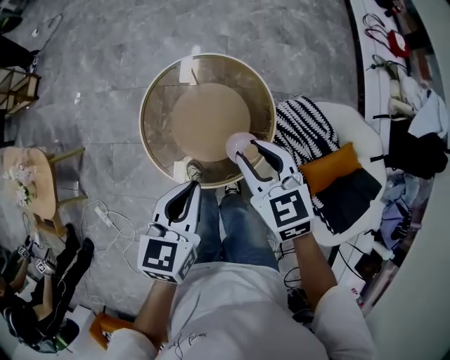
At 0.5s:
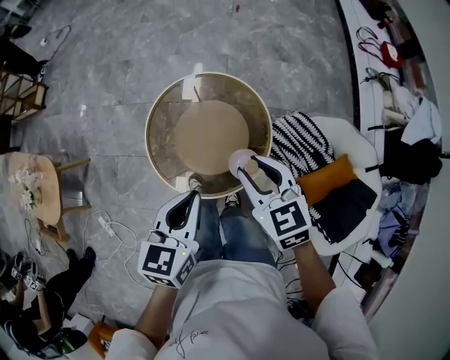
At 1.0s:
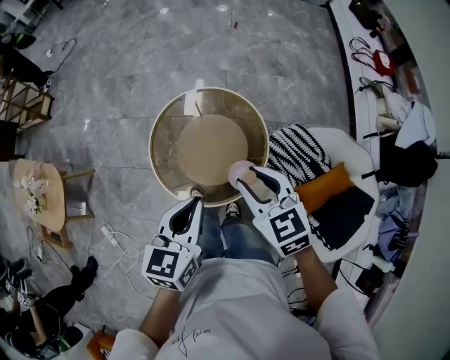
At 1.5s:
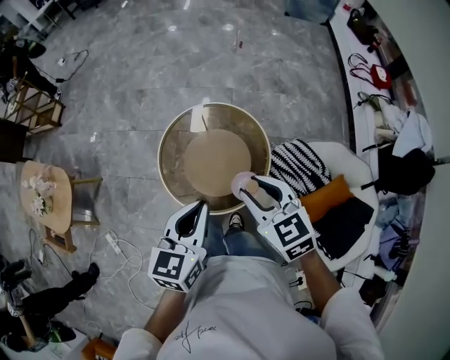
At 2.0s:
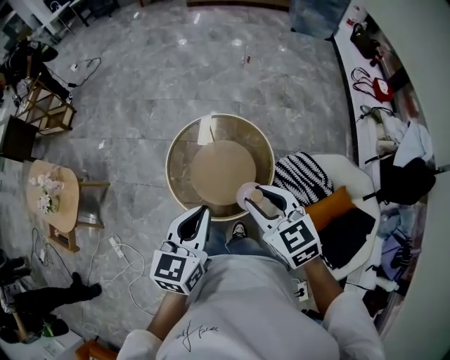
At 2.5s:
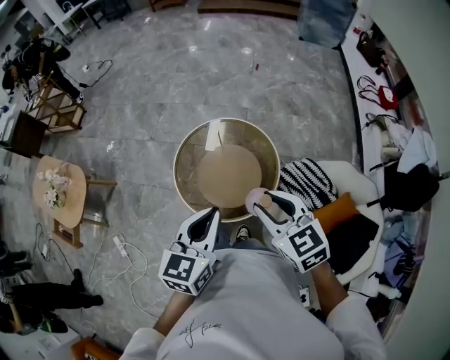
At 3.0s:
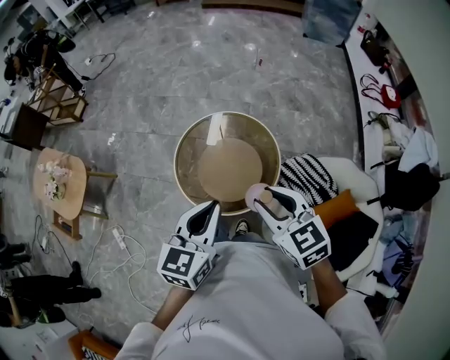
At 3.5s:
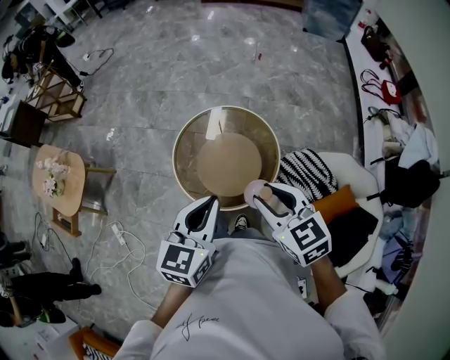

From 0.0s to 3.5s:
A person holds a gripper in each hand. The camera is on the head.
From 0.0s to 2.0s: The grippers both shift upward and backward by approximately 15 cm.
From 2.0s to 3.5s: The grippers make only small movements.

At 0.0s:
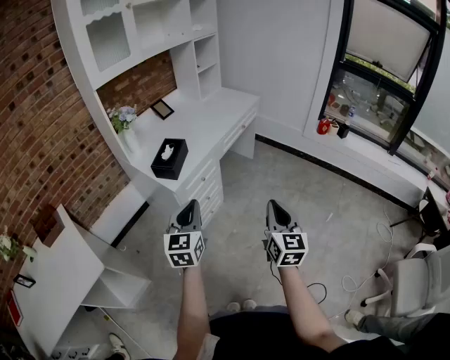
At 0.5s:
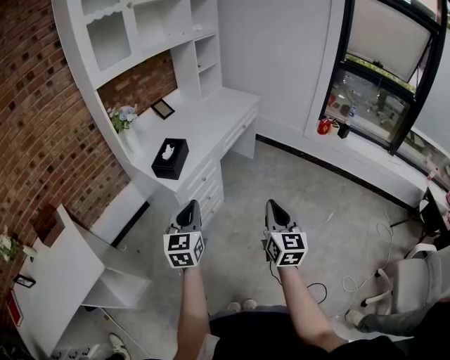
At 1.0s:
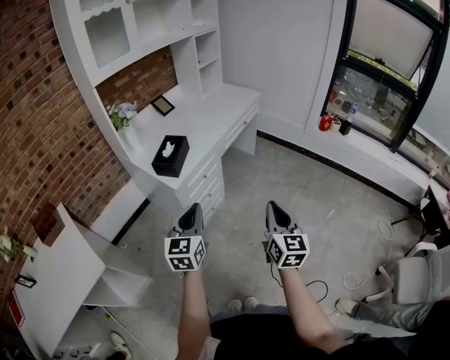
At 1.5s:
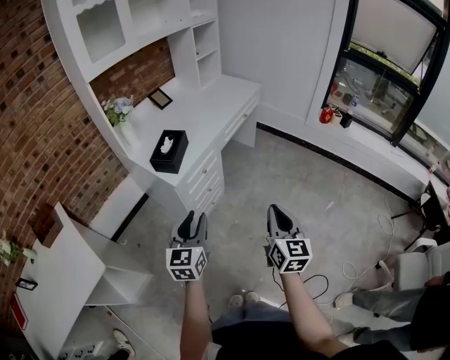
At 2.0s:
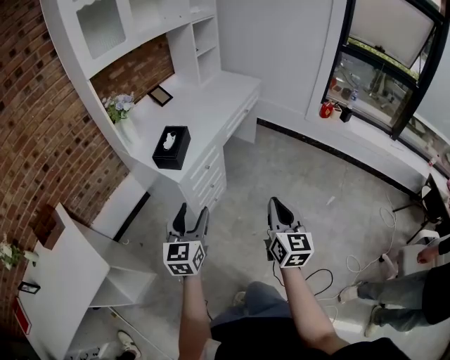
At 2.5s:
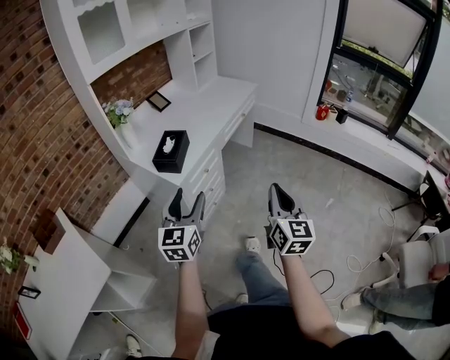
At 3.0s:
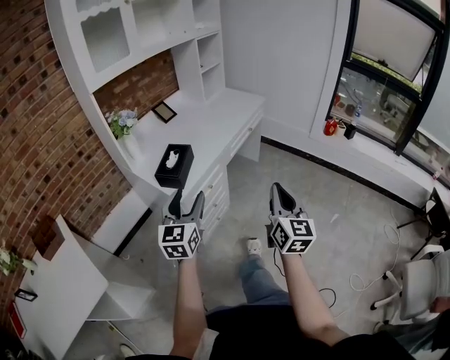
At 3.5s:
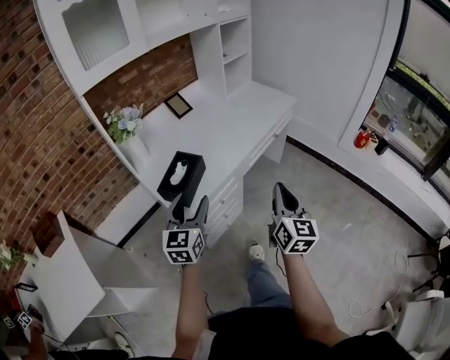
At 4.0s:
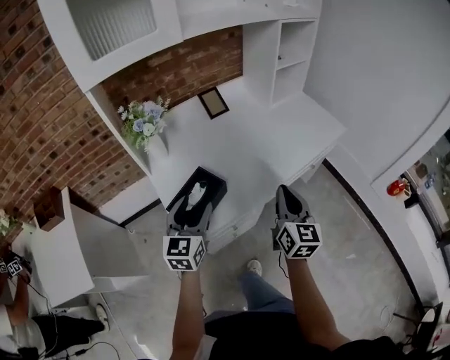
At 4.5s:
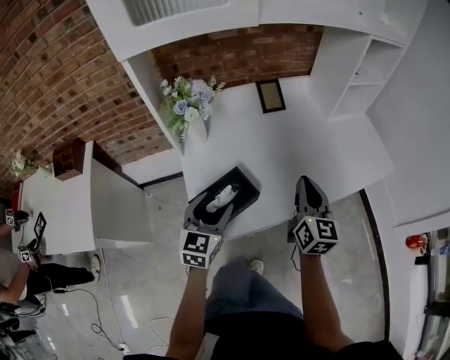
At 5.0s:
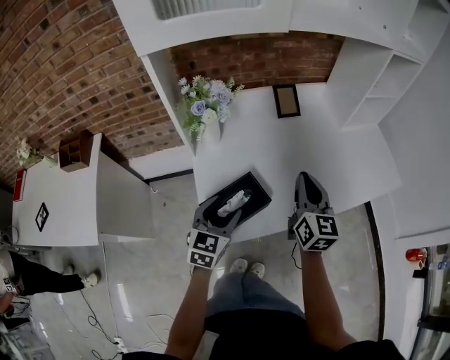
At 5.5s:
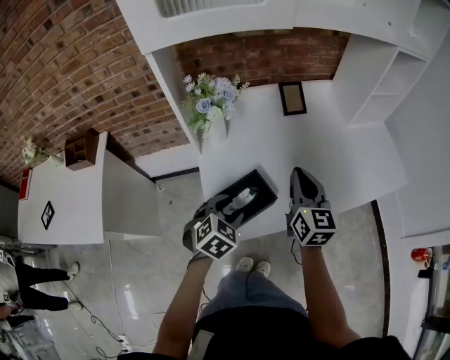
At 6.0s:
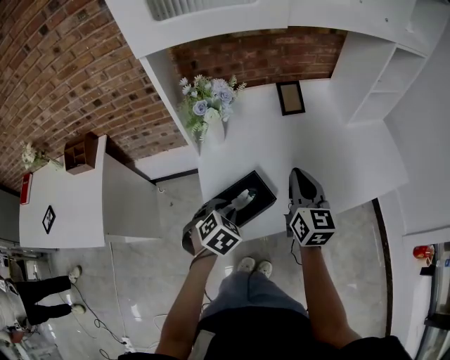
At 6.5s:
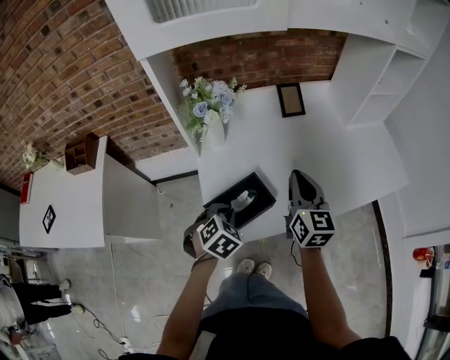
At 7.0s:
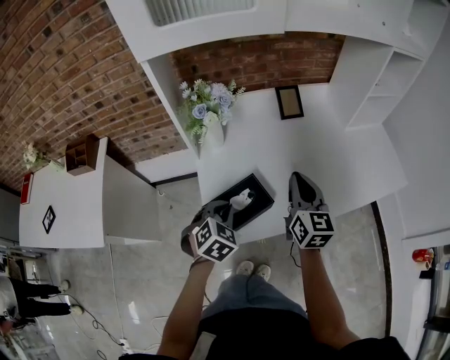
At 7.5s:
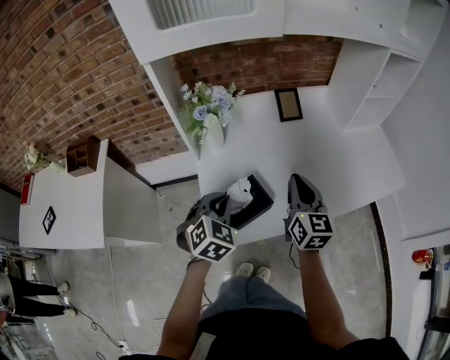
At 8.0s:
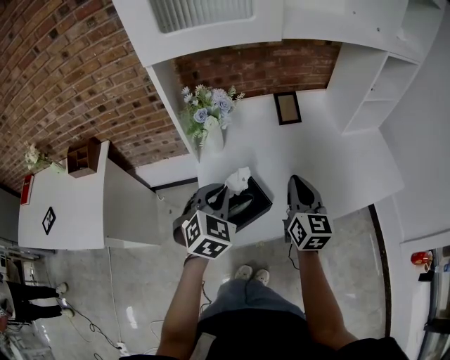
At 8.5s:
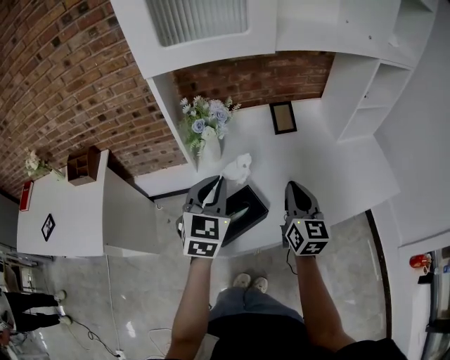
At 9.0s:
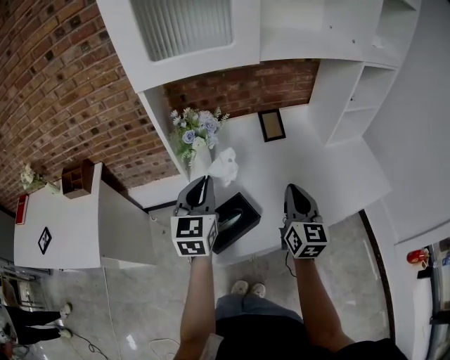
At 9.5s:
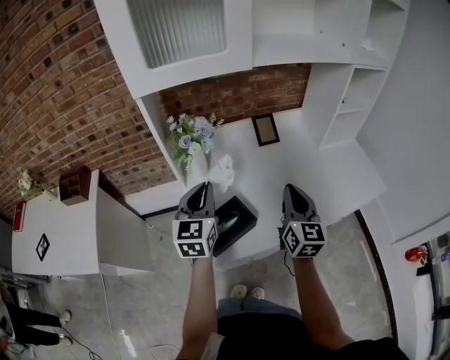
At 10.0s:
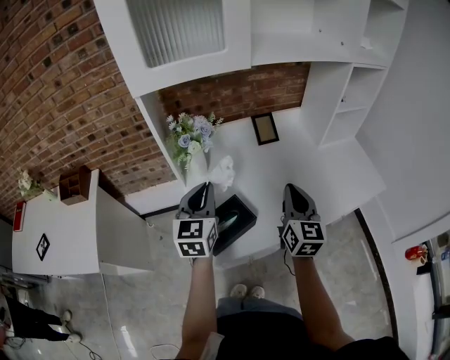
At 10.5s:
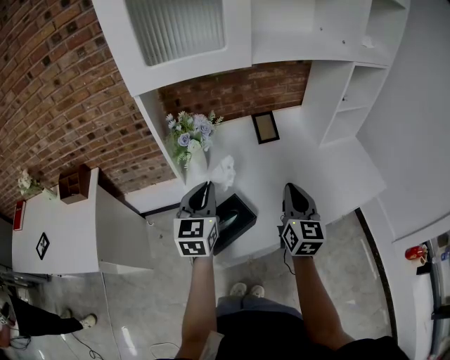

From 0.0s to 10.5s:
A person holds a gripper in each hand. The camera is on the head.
From 0.0s to 2.0s: The left gripper moves some 5 cm, and opens.
From 2.0s to 4.0s: The right gripper shifts by about 50 cm, and changes its angle by roughly 20 degrees; the left gripper changes place by roughly 40 cm, and rotates about 20 degrees.
From 4.0s to 6.5s: The left gripper goes roughly 10 cm downward, angles its fingers downward, by about 50 degrees, and closes its fingers. Meanwhile the right gripper moves forward and to the left, approximately 20 cm, and rotates roughly 20 degrees.
From 6.5s to 8.5s: The left gripper moves upward, some 20 cm, and angles its fingers upward, by approximately 40 degrees.
From 8.5s to 10.5s: The grippers stay close to where they were, moving slightly.

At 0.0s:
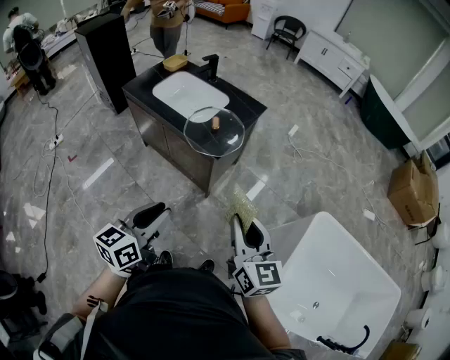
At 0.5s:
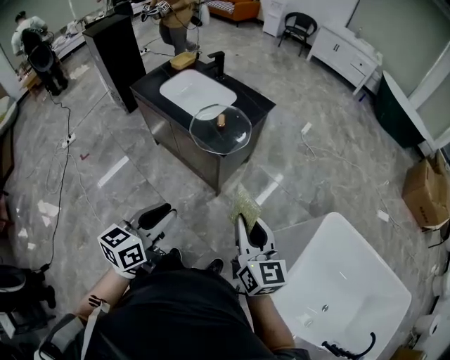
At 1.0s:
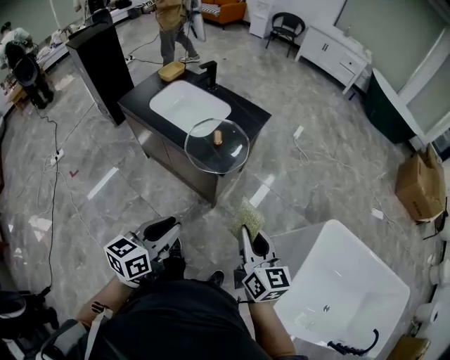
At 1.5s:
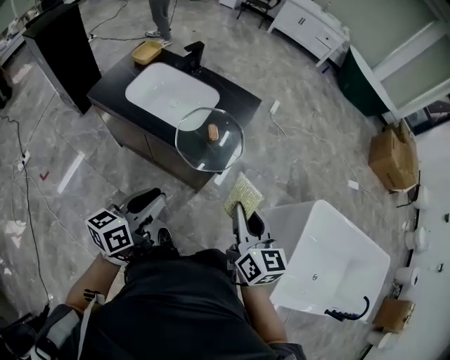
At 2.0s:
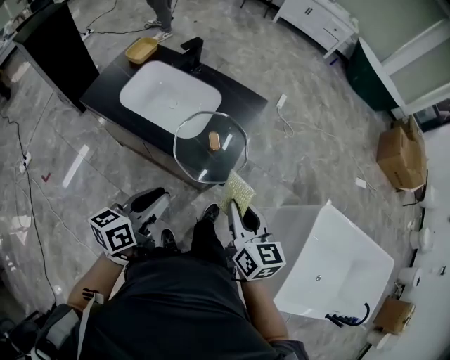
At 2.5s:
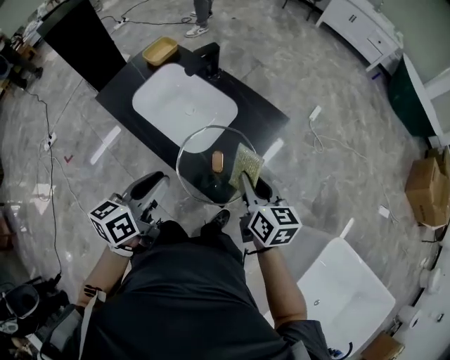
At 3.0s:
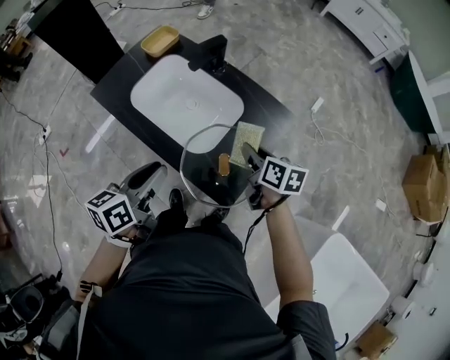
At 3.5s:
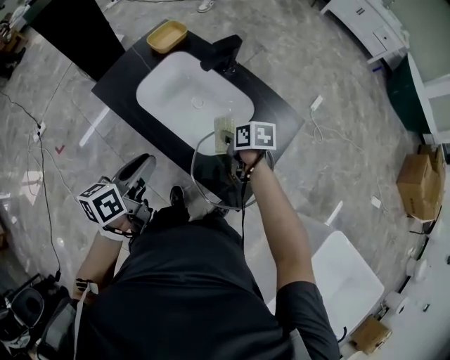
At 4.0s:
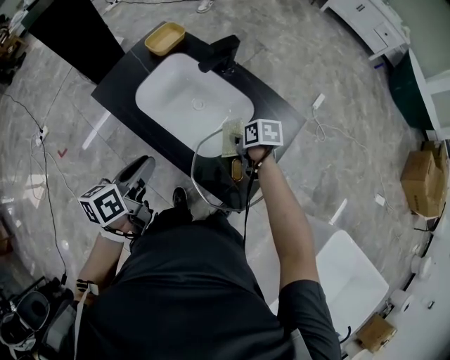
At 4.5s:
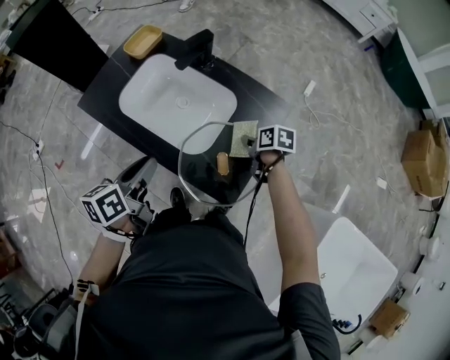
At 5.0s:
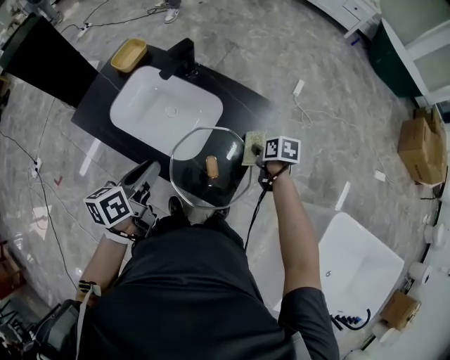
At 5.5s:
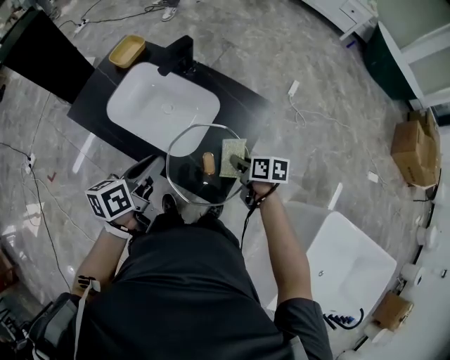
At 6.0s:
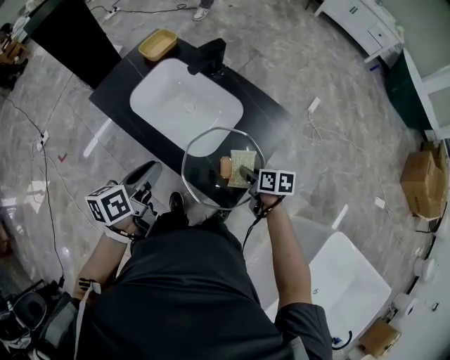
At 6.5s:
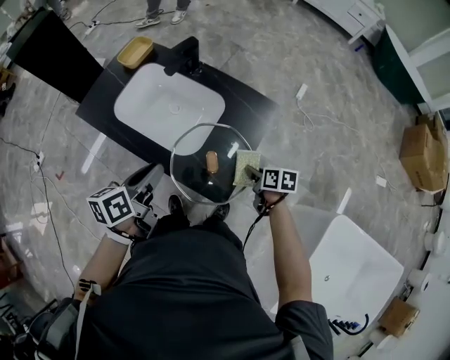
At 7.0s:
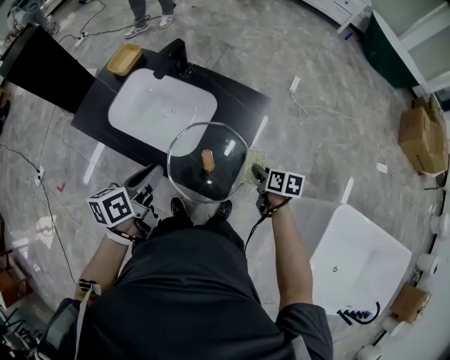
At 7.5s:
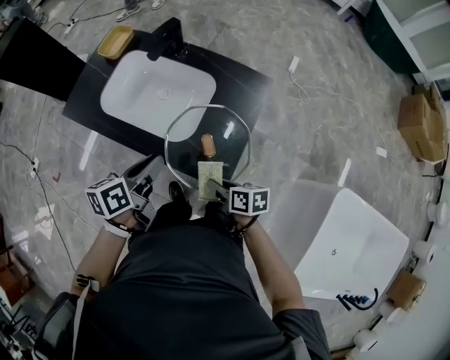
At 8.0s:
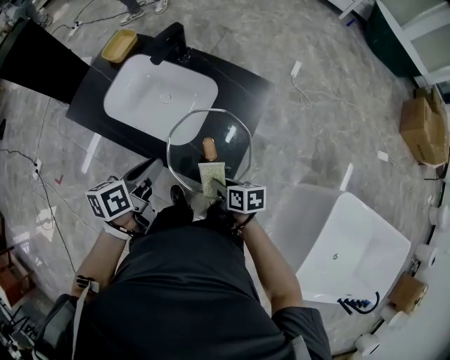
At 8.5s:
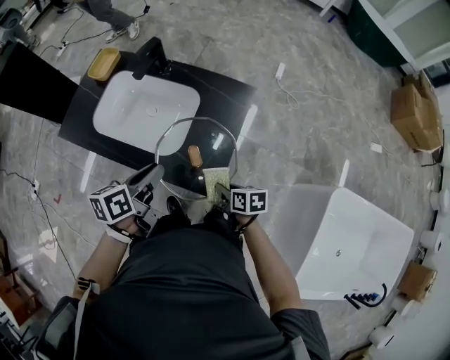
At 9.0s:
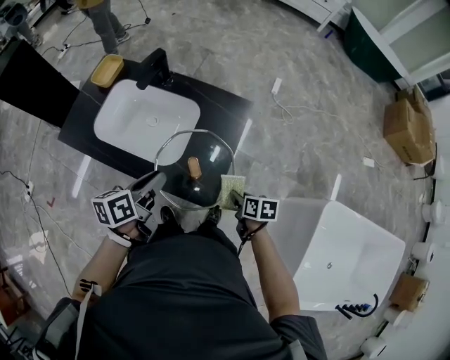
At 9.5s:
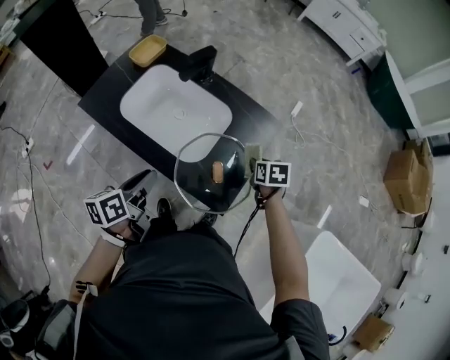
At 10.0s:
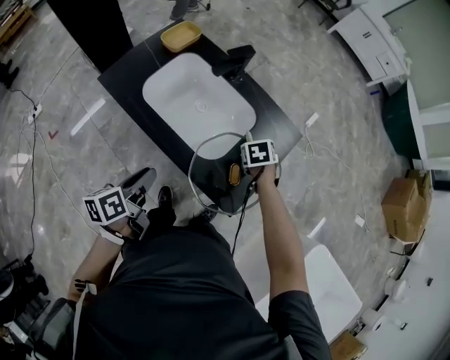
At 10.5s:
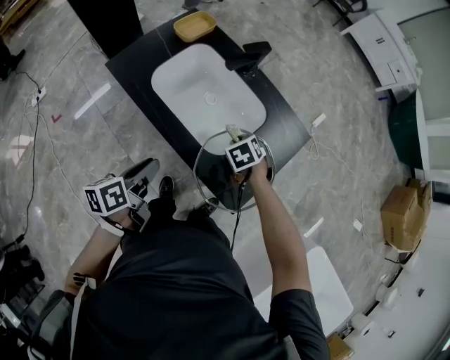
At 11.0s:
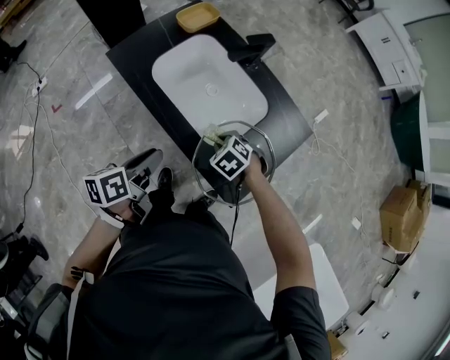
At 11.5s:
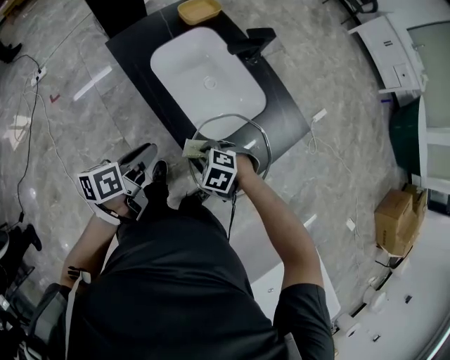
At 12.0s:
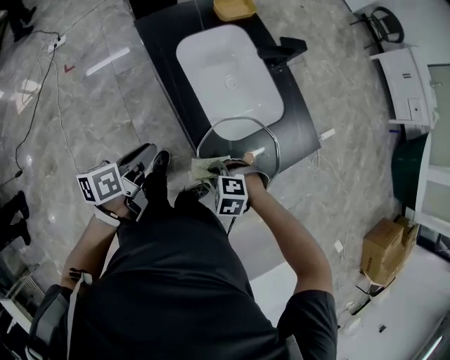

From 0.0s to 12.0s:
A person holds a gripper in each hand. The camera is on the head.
From 0.0s to 2.0s: The grippers both shift forward and to the left by approximately 30 cm. The left gripper swivels roughly 20 degrees.
From 2.0s to 4.0s: The right gripper shifts by approximately 40 cm, and points its fingers roughly 40 degrees further downward, while the left gripper moves approximately 25 cm, and changes its angle by some 30 degrees.
From 4.0s to 6.0s: The right gripper travels backward and to the right by approximately 15 cm. Meanwhile the left gripper travels to the right by some 5 cm.
From 6.0s to 8.0s: The right gripper shifts some 10 cm backward and to the left. Meanwhile the left gripper travels to the right by about 5 cm.
From 8.0s to 10.0s: The right gripper ends up roughly 20 cm from where it was, and points its fingers some 40 degrees further downward. The left gripper ends up some 15 cm from where it was, and rotates approximately 20 degrees.
From 10.0s to 12.0s: The left gripper shifts by roughly 5 cm. Meanwhile the right gripper moves approximately 25 cm, and rolls counterclockwise, seen from behind, by some 90 degrees.
